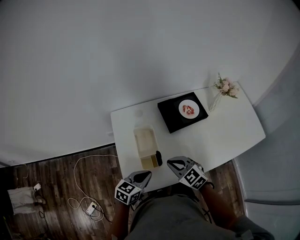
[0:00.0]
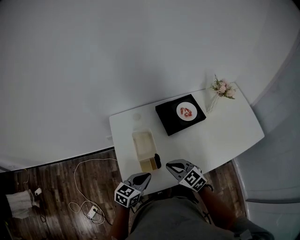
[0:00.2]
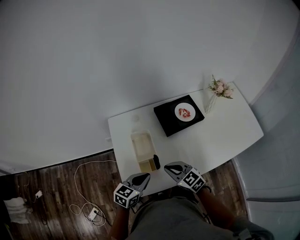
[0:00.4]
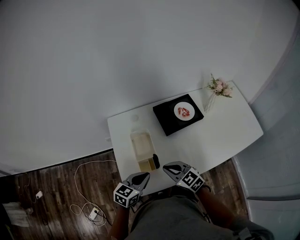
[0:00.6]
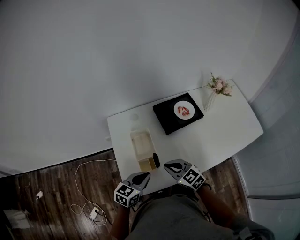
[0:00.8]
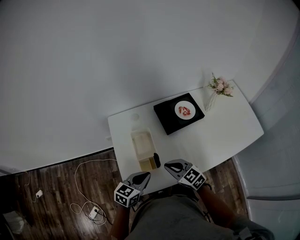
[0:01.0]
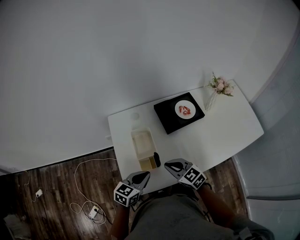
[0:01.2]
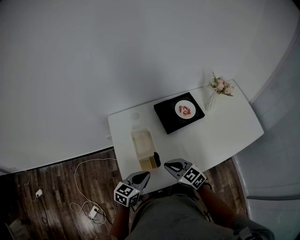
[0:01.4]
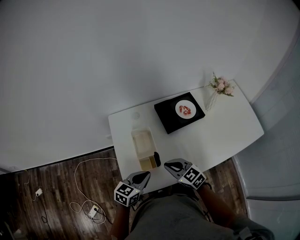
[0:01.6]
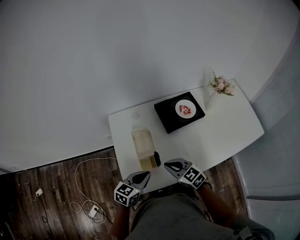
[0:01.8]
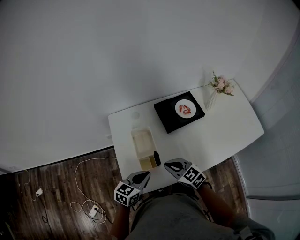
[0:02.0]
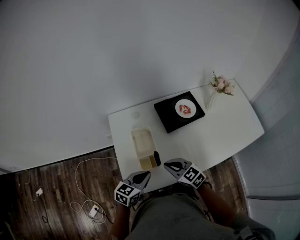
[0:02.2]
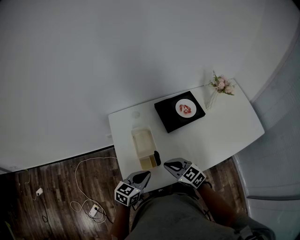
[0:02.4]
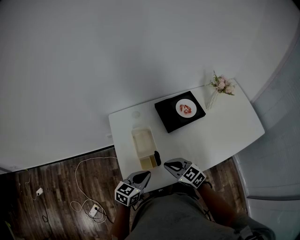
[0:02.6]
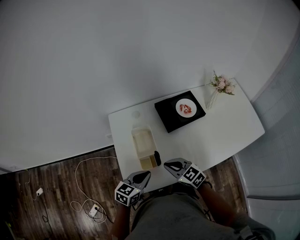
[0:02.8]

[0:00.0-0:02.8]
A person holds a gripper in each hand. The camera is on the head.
0:00.0 to 0:01.4: The grippers make only small movements.
0:01.4 to 0:02.8: Neither gripper changes place.

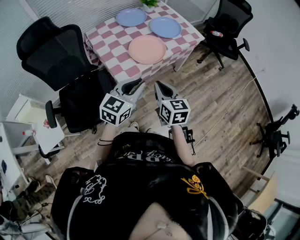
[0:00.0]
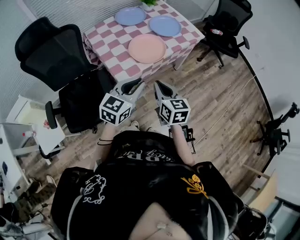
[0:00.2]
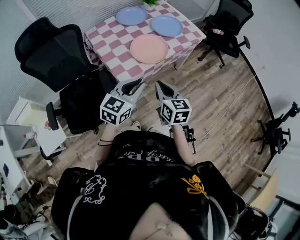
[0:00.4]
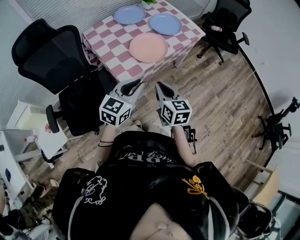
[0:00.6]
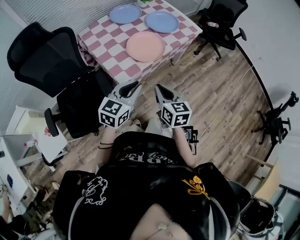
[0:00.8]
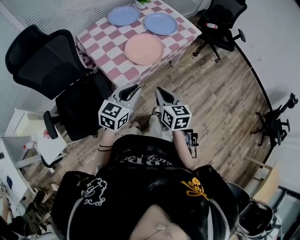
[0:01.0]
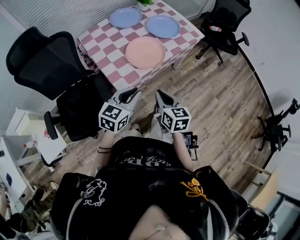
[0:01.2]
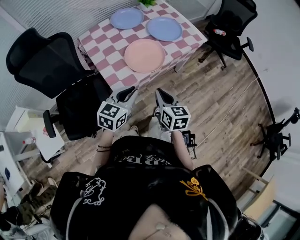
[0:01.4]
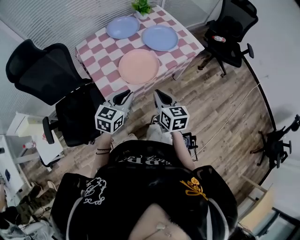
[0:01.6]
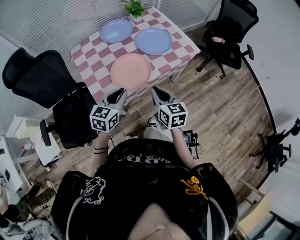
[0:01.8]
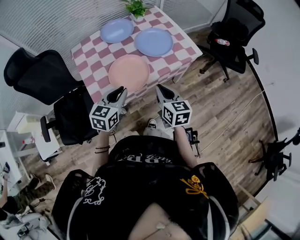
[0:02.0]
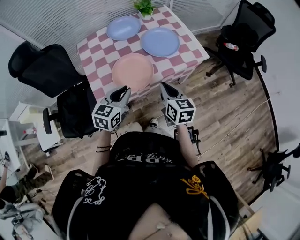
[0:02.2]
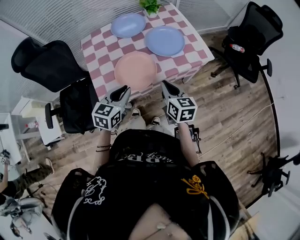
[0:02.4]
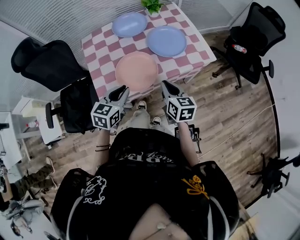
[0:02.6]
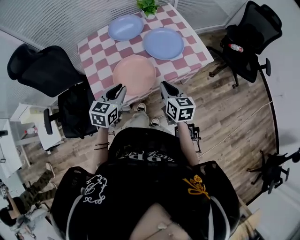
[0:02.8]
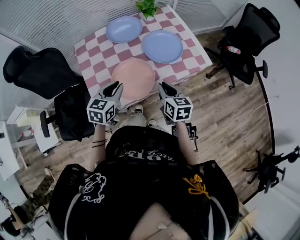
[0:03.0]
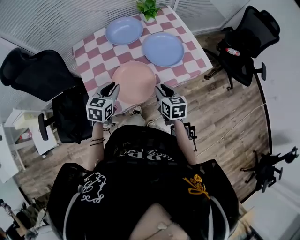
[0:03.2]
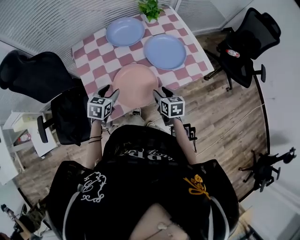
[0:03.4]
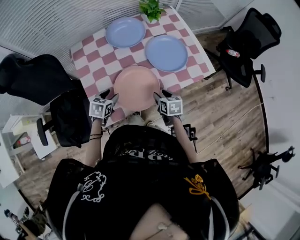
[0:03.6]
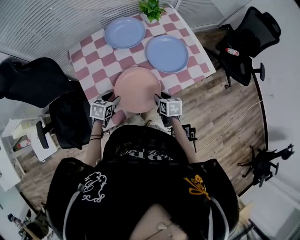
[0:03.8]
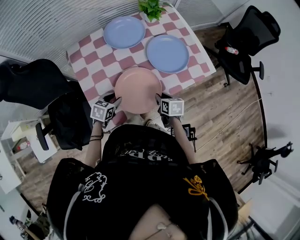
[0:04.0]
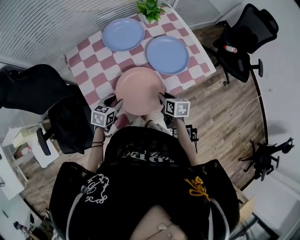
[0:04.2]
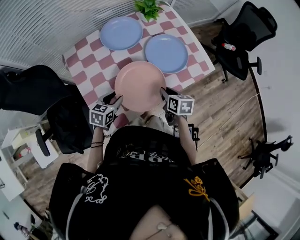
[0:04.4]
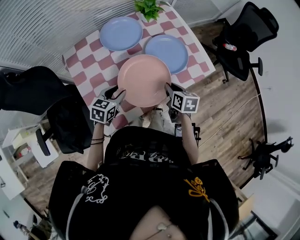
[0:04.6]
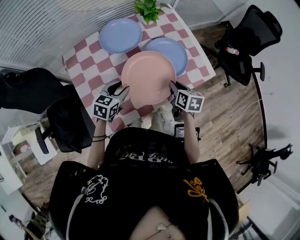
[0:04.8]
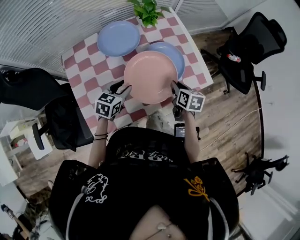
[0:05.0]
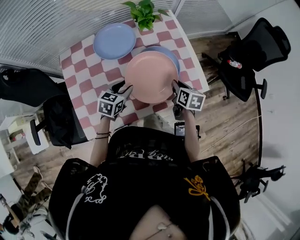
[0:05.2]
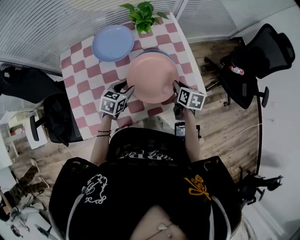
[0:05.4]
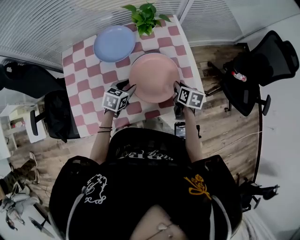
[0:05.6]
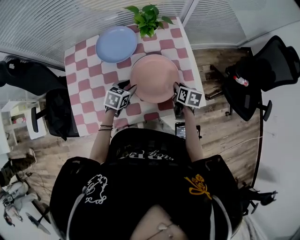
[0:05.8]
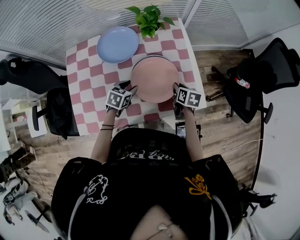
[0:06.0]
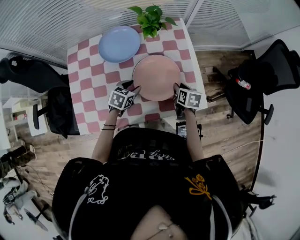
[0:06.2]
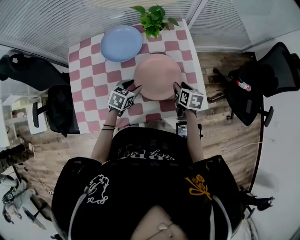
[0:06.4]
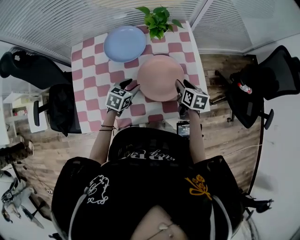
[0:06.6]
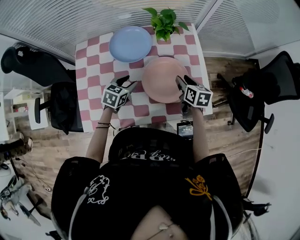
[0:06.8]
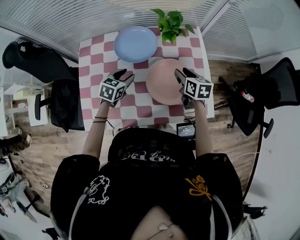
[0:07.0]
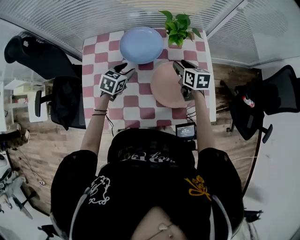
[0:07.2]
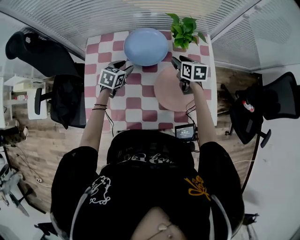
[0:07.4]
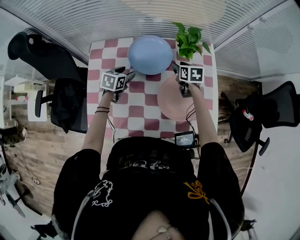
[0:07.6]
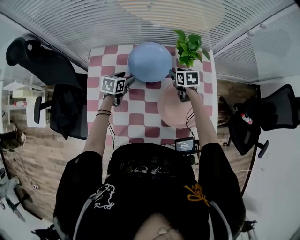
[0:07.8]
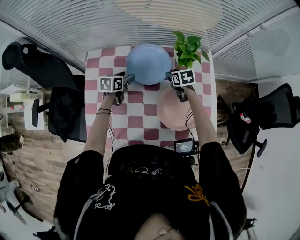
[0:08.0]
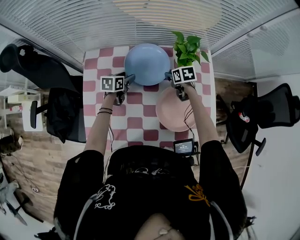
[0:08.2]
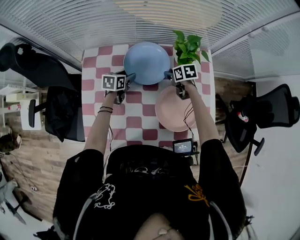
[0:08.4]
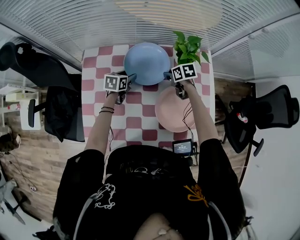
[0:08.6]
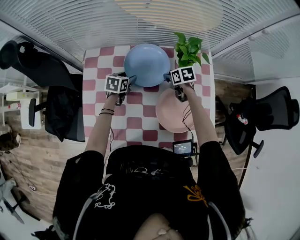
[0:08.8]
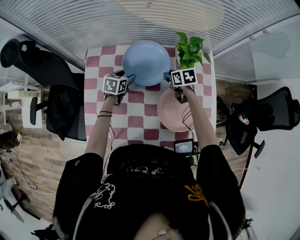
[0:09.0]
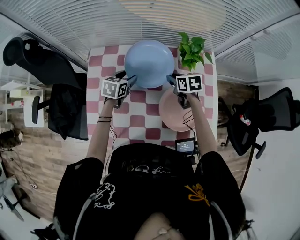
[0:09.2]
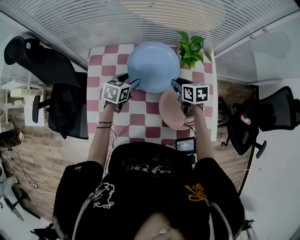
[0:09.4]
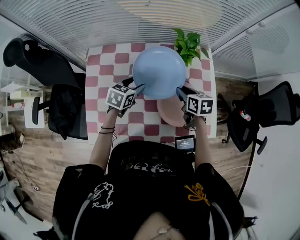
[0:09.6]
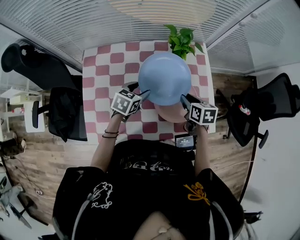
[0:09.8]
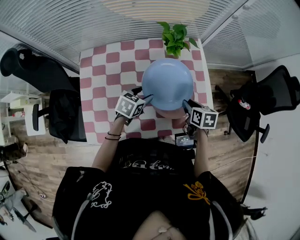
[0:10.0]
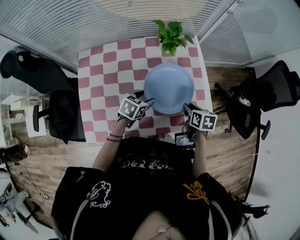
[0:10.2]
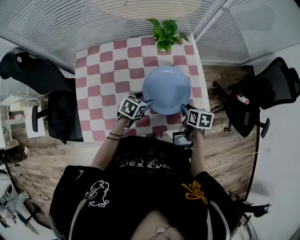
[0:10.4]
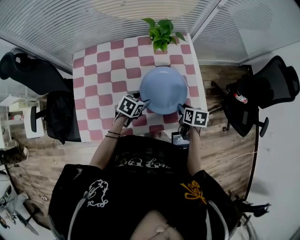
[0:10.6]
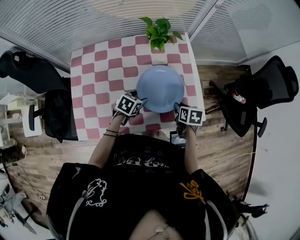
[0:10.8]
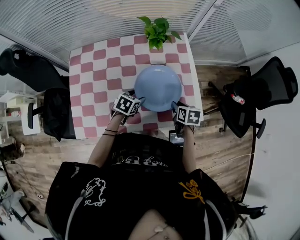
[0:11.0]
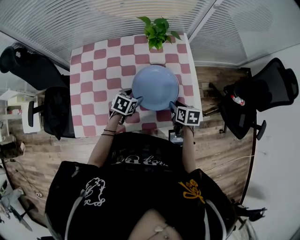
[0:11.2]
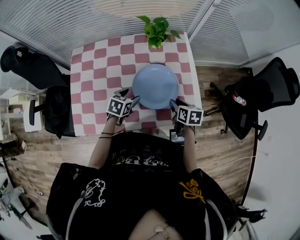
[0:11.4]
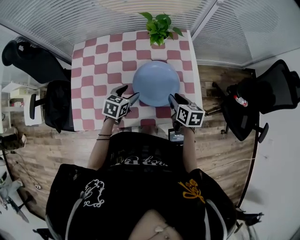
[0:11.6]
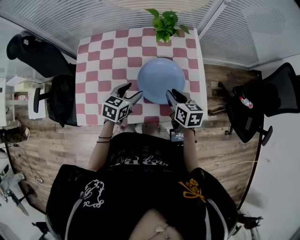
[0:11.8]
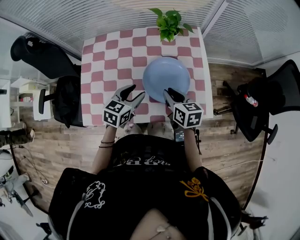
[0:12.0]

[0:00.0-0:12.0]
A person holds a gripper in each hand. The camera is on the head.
0:00.0 to 0:01.6: The left gripper is displaced forward and downward by about 15 cm. Meanwhile the right gripper moves forward, roughly 15 cm.
0:01.6 to 0:03.0: The left gripper shifts approximately 15 cm forward, while the right gripper is displaced forward and to the right by some 20 cm.
0:03.0 to 0:04.4: The left gripper moves downward, to the left and forward, about 15 cm, and opens its fingers, while the right gripper is displaced downward and forward by about 10 cm, rotates some 20 degrees, and opens, then closes once more.
0:04.4 to 0:06.0: The two grippers go approximately 25 cm forward and to the right.
0:06.0 to 0:07.6: Both grippers move to the left and forward, roughly 25 cm. The right gripper rotates about 30 degrees, and opens up.
0:07.6 to 0:09.0: The right gripper shifts by about 5 cm.
0:09.0 to 0:10.4: The left gripper moves approximately 25 cm, and turns by about 20 degrees, while the right gripper ends up approximately 30 cm from where it was, and swivels some 30 degrees.
0:10.4 to 0:12.0: The right gripper moves to the left and upward, approximately 10 cm, and turns by roughly 30 degrees. Meanwhile the left gripper heads upward, covering approximately 10 cm, and changes its angle by some 20 degrees.

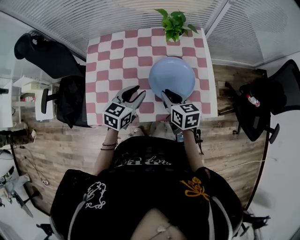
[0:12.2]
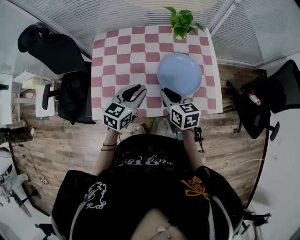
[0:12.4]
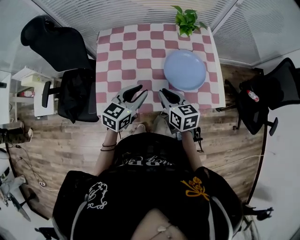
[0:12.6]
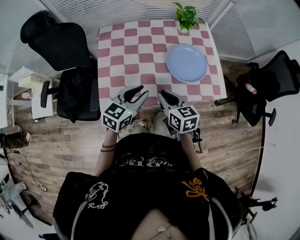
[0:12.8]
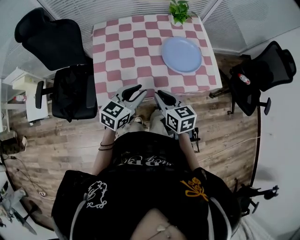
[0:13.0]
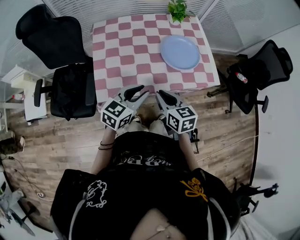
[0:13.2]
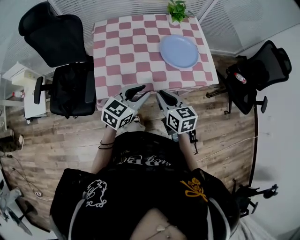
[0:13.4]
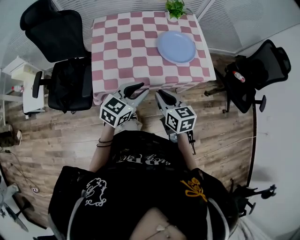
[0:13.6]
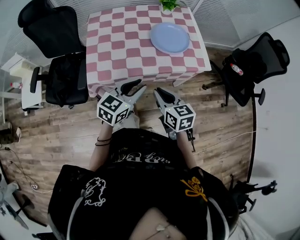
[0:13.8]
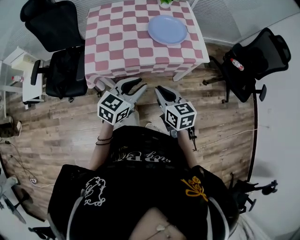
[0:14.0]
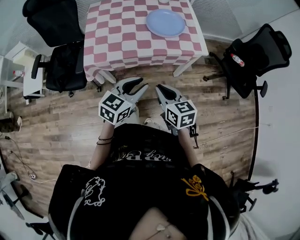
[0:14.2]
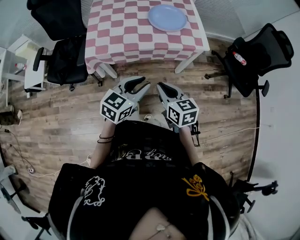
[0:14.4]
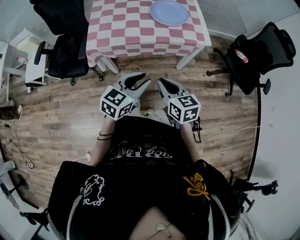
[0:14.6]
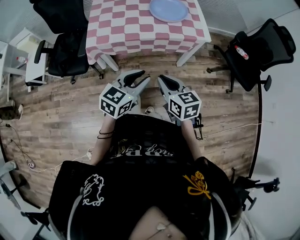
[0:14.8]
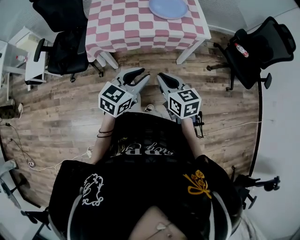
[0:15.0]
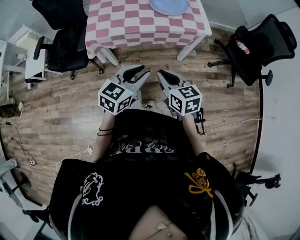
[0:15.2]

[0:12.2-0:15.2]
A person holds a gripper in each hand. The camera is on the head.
0:12.2 to 0:13.8: Both grippers travel together backward, roughly 30 cm.
0:13.8 to 0:15.2: The two grippers go roughly 20 cm backward and to the right.

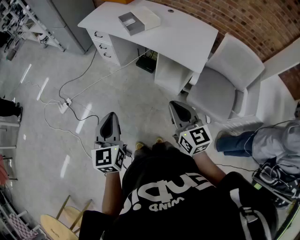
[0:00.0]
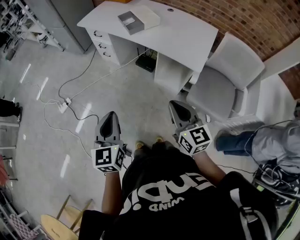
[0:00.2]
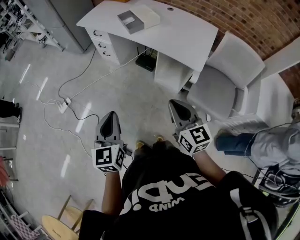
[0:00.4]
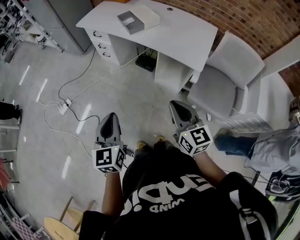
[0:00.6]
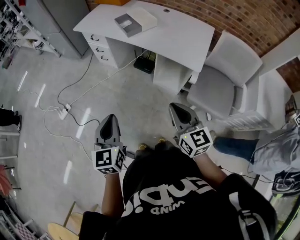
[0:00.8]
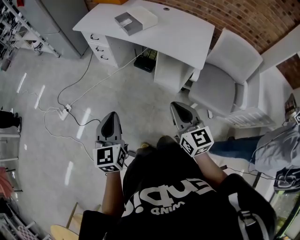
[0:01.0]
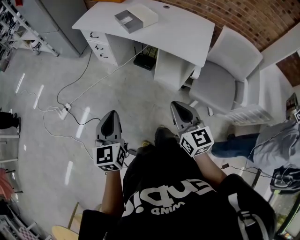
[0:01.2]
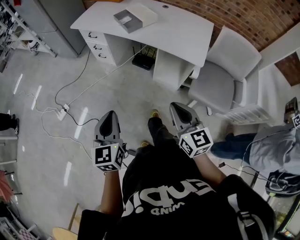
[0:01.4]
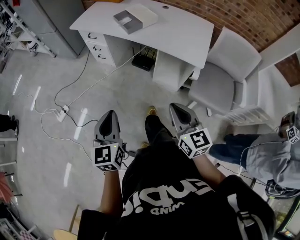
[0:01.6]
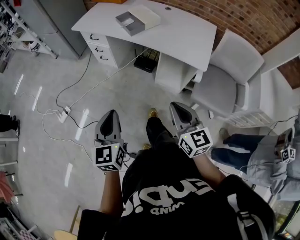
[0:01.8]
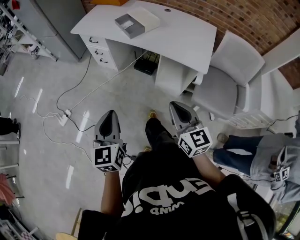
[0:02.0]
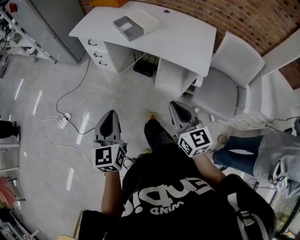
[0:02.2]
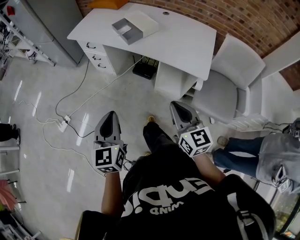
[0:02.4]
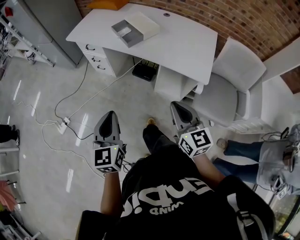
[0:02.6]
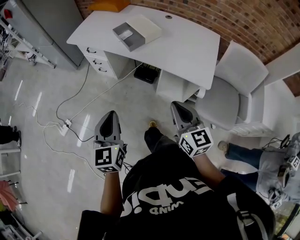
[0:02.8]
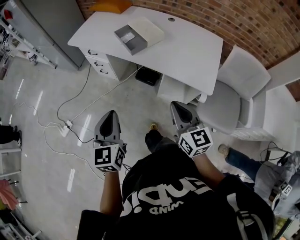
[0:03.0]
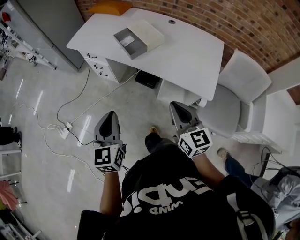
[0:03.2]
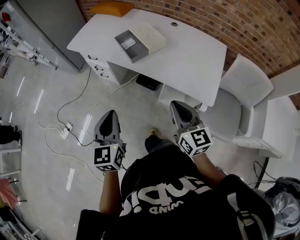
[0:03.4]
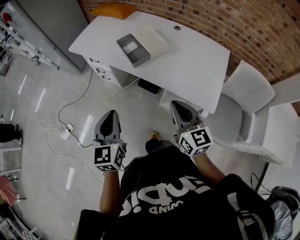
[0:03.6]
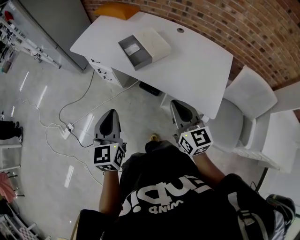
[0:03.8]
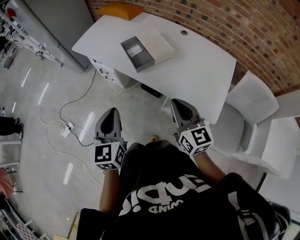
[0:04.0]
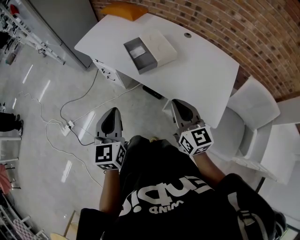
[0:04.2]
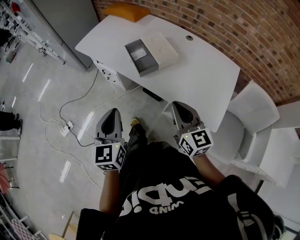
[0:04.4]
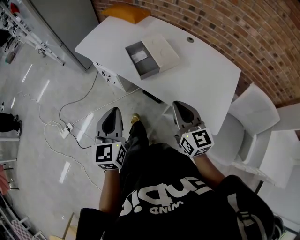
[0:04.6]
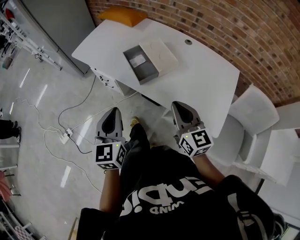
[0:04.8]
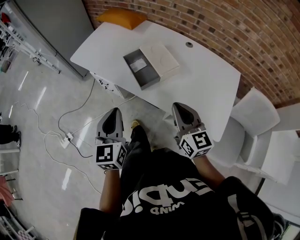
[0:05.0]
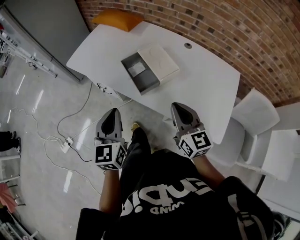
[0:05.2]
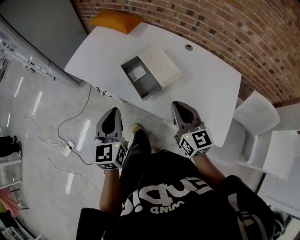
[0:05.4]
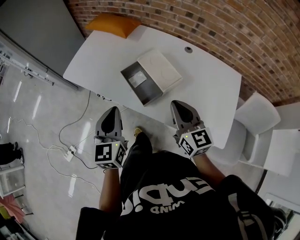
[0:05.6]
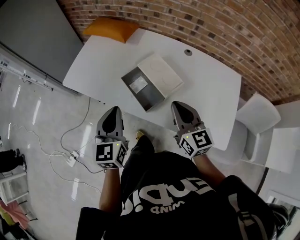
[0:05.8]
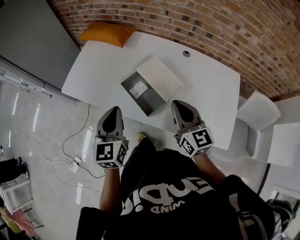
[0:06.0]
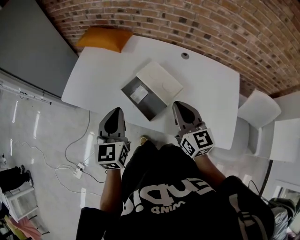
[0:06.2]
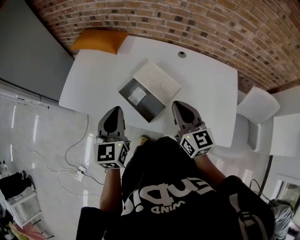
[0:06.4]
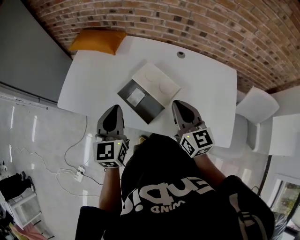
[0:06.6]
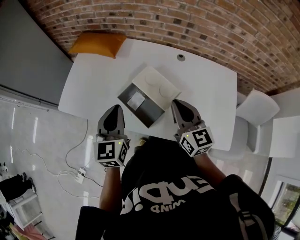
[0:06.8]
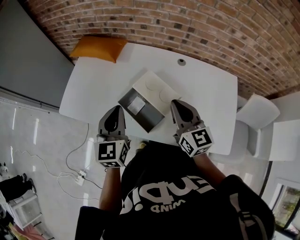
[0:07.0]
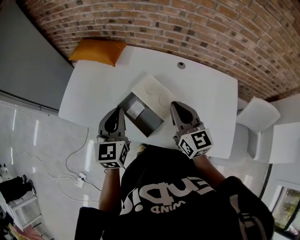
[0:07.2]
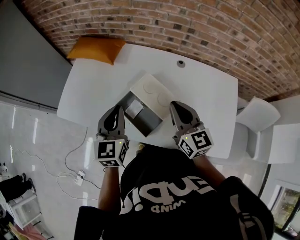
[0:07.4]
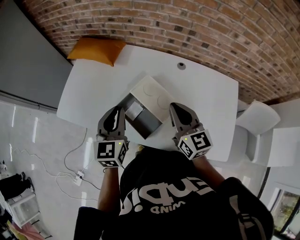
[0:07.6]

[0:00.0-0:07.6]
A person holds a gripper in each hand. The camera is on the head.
0:00.0 to 0:01.6: The two grippers go some 5 cm to the left.
0:01.6 to 0:03.0: The two grippers go roughly 20 cm forward.
0:03.0 to 0:04.6: The two grippers go roughly 20 cm forward.
0:04.6 to 0:06.0: The grippers both shift forward by some 25 cm.
0:06.0 to 0:07.6: Both grippers move forward, about 10 cm.
